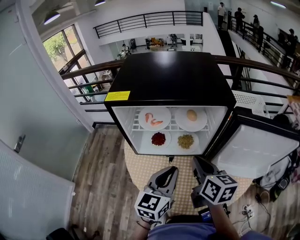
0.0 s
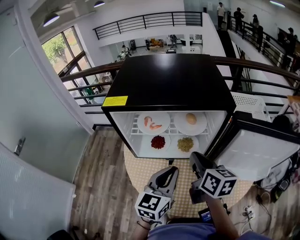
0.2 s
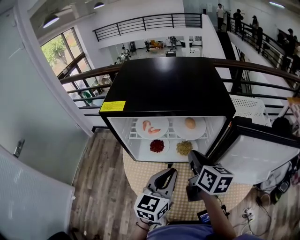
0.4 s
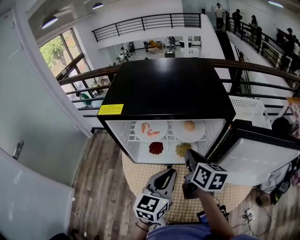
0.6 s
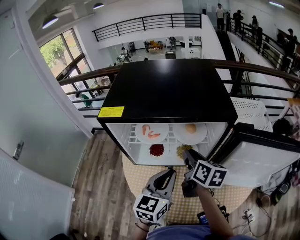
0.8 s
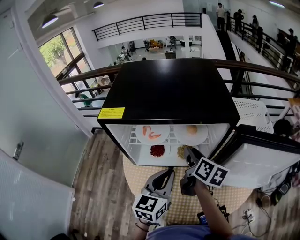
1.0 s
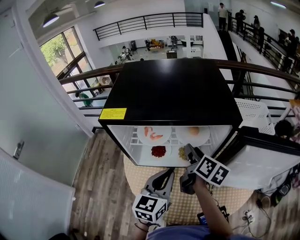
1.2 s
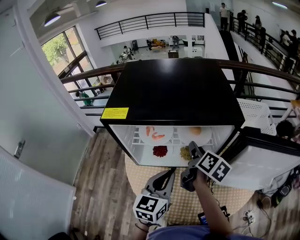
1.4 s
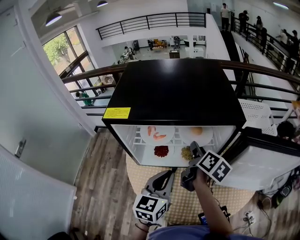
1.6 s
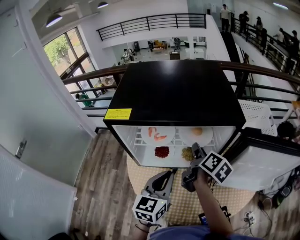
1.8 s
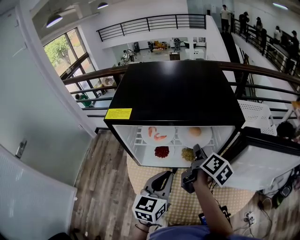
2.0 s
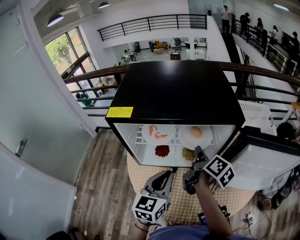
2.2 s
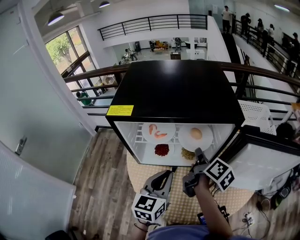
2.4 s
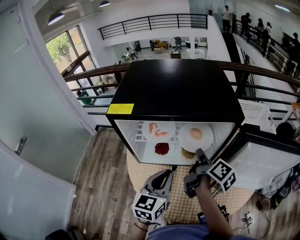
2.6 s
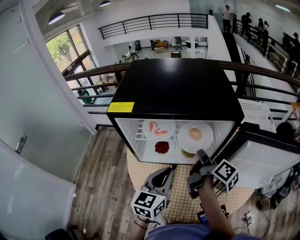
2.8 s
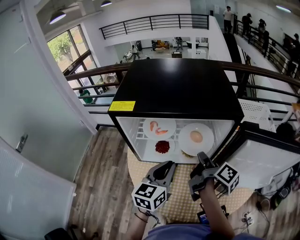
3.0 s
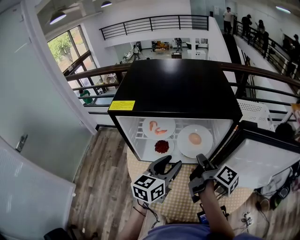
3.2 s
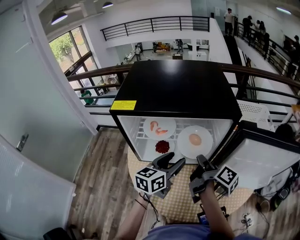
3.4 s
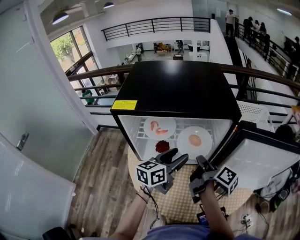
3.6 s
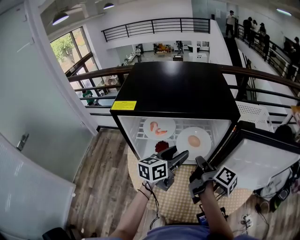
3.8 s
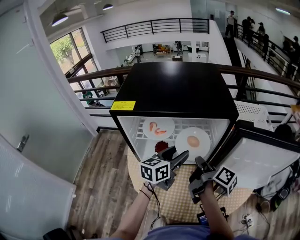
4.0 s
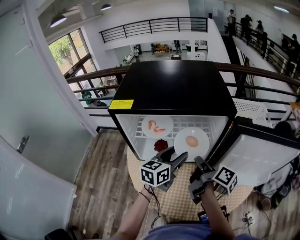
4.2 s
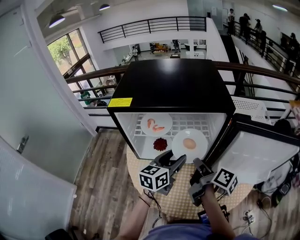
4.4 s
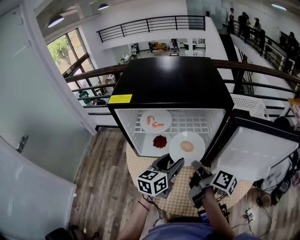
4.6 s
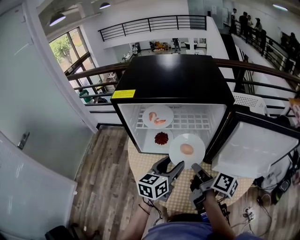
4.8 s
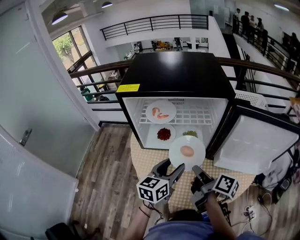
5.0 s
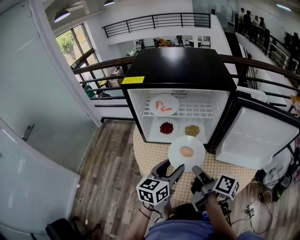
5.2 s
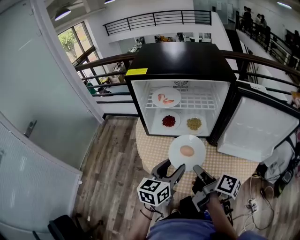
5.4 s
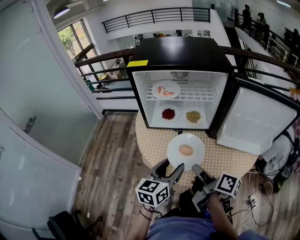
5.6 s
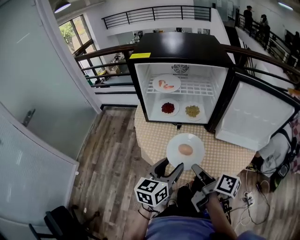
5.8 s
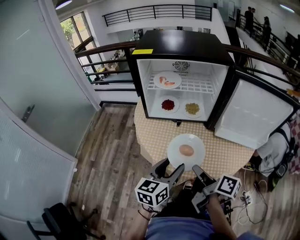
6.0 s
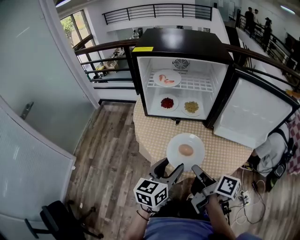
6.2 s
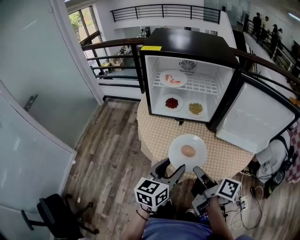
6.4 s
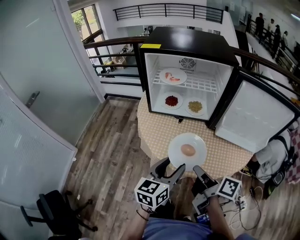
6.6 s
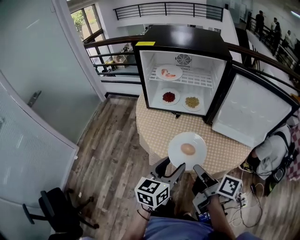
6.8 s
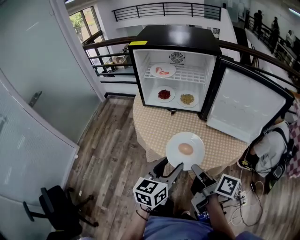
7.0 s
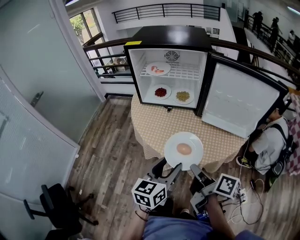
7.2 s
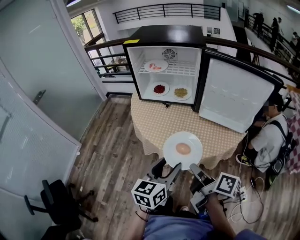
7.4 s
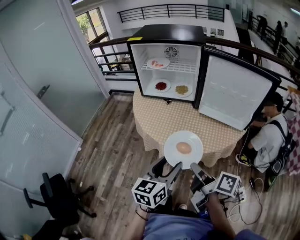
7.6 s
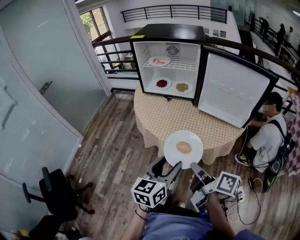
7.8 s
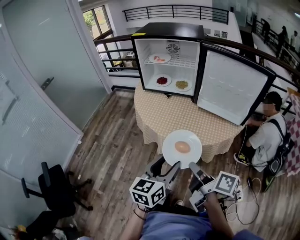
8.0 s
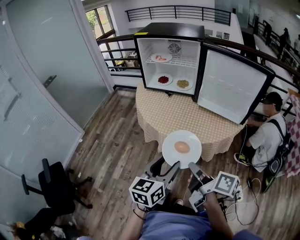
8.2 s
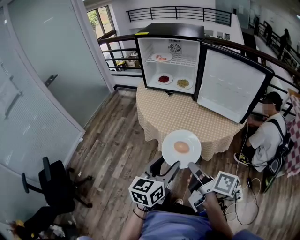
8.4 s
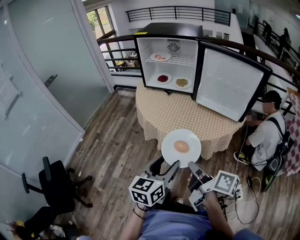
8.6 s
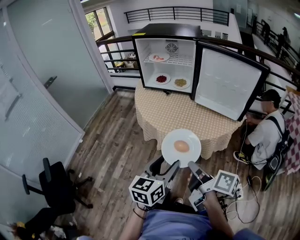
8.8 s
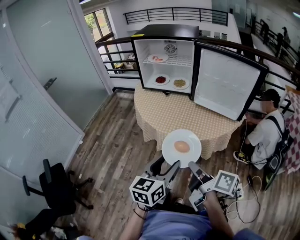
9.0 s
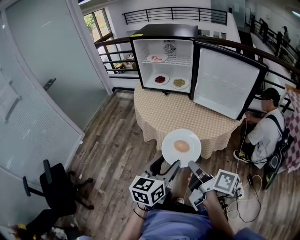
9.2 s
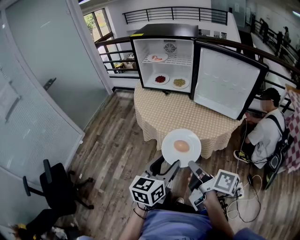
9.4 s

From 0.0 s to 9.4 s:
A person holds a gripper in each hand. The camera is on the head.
From 0.0 s to 1.6 s: The right gripper moves forward, roughly 15 cm, swivels roughly 30 degrees, and opens, while the left gripper heads forward, covering approximately 5 cm.
From 1.6 s to 3.2 s: The left gripper opens its fingers; the right gripper goes some 5 cm backward, changes its angle by some 30 degrees, and closes up.
From 3.2 s to 4.8 s: The right gripper is displaced backward by some 10 cm, while the left gripper ends up some 5 cm from where it was.
From 4.8 s to 6.2 s: Both grippers move backward, approximately 20 cm.
From 6.2 s to 7.8 s: The two grippers go some 25 cm backward and to the right.
From 7.8 s to 9.4 s: Both grippers travel together backward, roughly 5 cm.

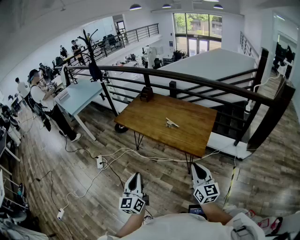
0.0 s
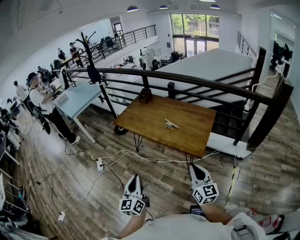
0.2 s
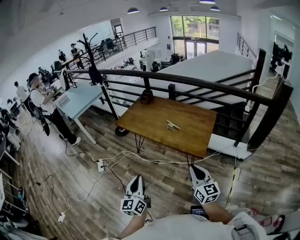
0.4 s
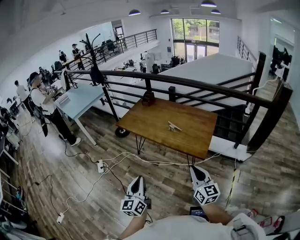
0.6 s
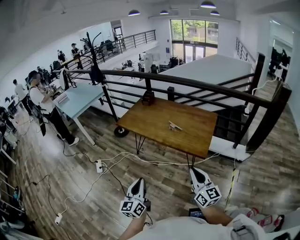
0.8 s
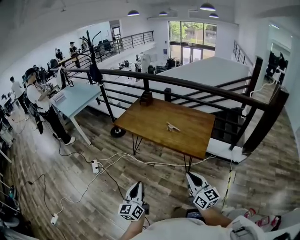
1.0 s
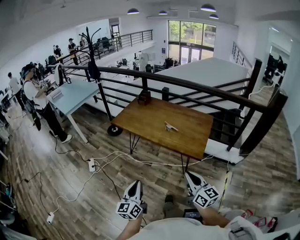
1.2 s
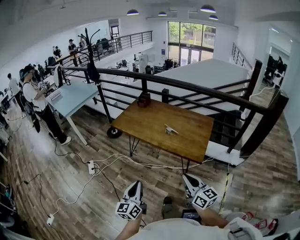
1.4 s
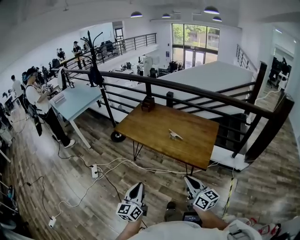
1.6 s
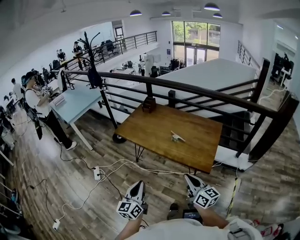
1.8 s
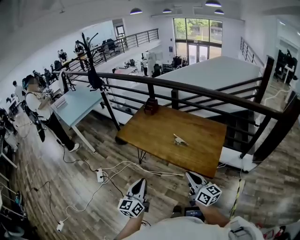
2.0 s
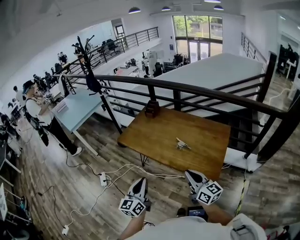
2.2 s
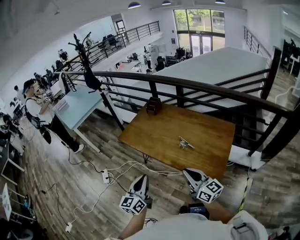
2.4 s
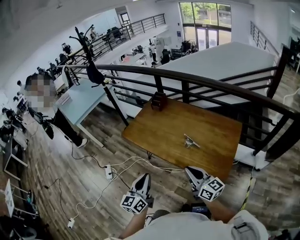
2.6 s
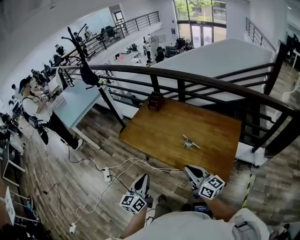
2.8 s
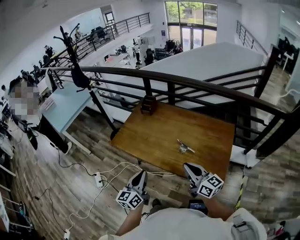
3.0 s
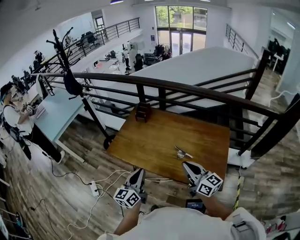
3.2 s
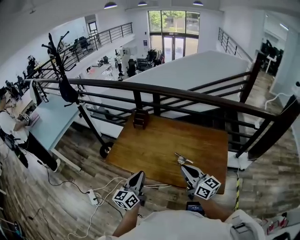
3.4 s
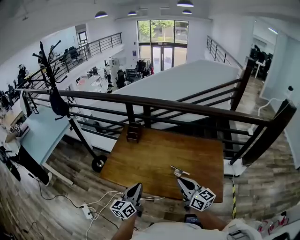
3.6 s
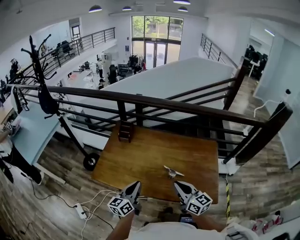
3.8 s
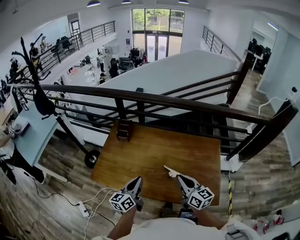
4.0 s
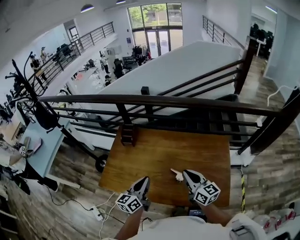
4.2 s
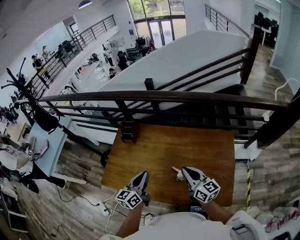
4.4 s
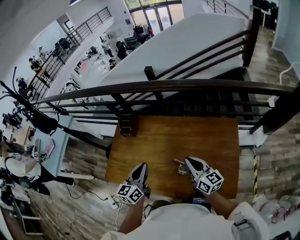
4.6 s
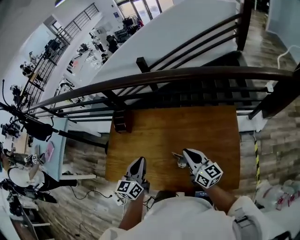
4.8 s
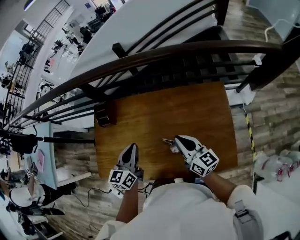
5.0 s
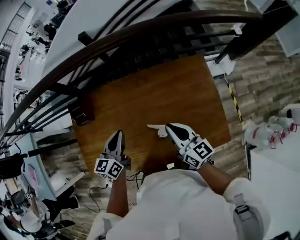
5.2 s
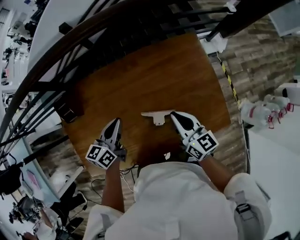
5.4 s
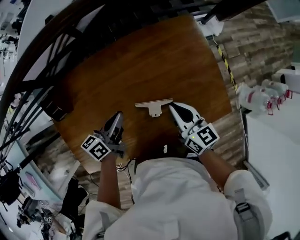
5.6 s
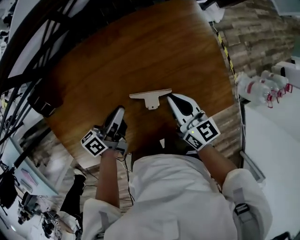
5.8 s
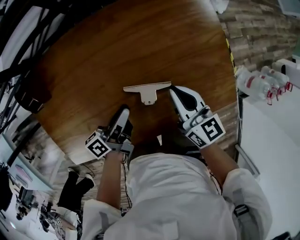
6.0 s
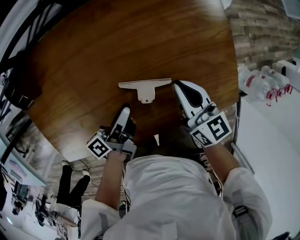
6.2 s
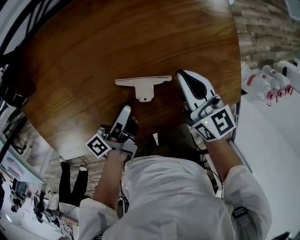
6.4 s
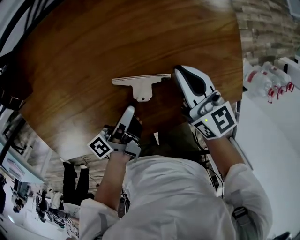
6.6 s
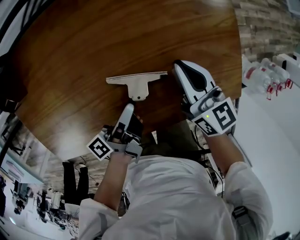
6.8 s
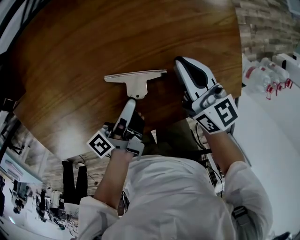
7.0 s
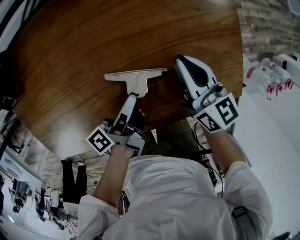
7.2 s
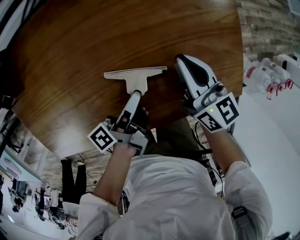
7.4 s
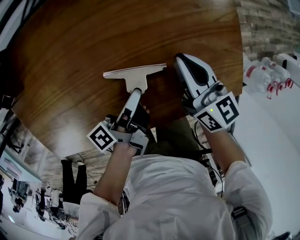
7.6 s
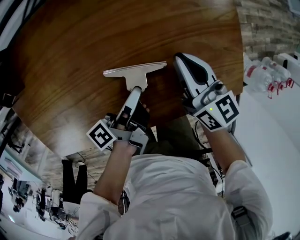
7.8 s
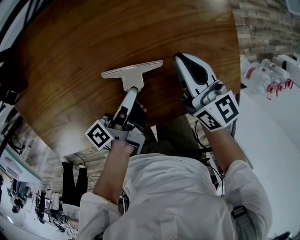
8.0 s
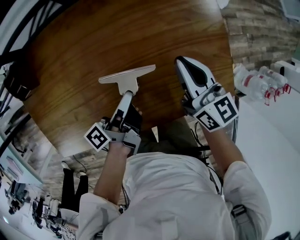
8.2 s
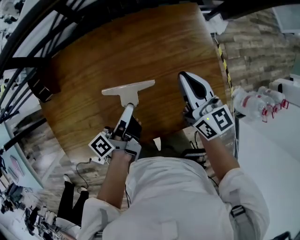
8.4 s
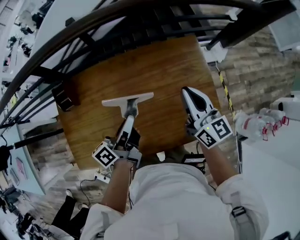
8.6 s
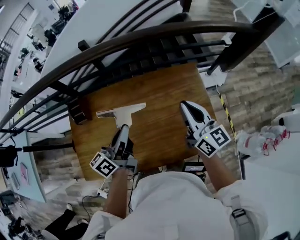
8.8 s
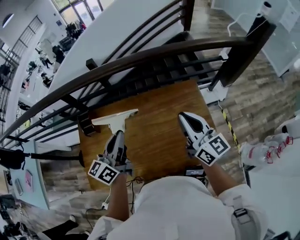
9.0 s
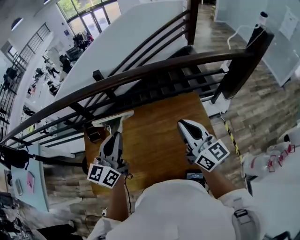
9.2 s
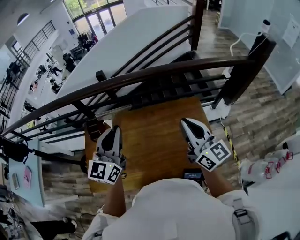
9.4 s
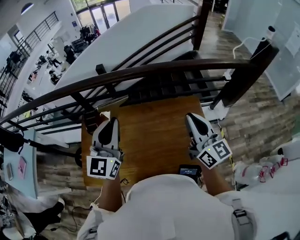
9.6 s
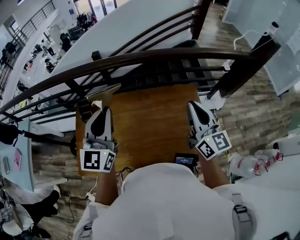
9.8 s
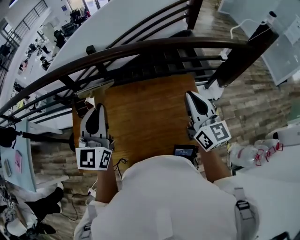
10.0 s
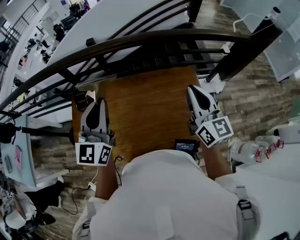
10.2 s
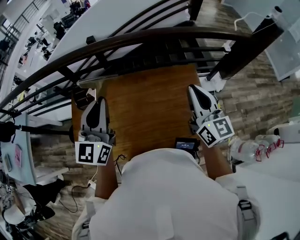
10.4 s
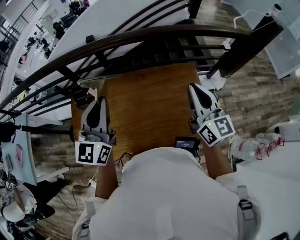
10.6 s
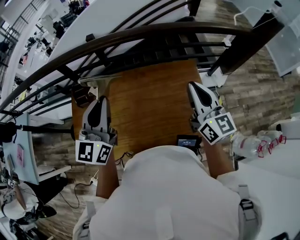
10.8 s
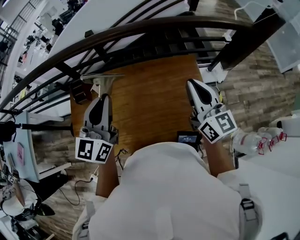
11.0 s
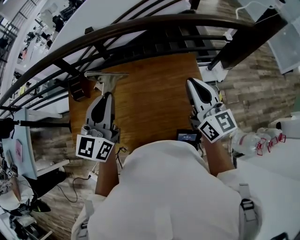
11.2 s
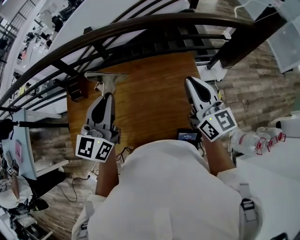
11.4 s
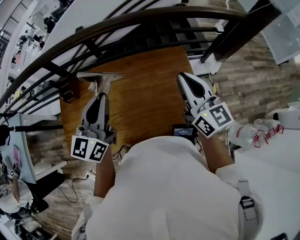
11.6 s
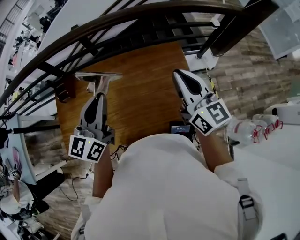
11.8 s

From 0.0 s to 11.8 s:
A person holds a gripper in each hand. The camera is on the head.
From 0.0 s to 1.4 s: The right gripper heads to the left, covering some 10 cm, while the left gripper moves to the left and downward, about 10 cm.
From 1.4 s to 3.0 s: Both grippers travel together forward, some 40 cm.
From 3.0 s to 4.4 s: Both grippers move forward, roughly 30 cm.
From 4.4 s to 6.0 s: The two grippers go approximately 25 cm downward. The left gripper rotates about 60 degrees, and opens. Meanwhile the right gripper swivels about 30 degrees.
From 6.0 s to 7.4 s: The right gripper goes approximately 5 cm downward. The left gripper heads to the right and downward, covering approximately 10 cm, and swivels about 30 degrees.
From 7.4 s to 8.8 s: The grippers both shift upward by some 35 cm. The left gripper rotates around the line of its fingers by some 50 degrees, clockwise from behind, and closes up. The right gripper rotates some 20 degrees.
From 8.8 s to 10.4 s: The left gripper is displaced upward by about 15 cm, and rotates around the line of its fingers by about 50 degrees, clockwise from behind, while the right gripper goes some 10 cm upward.
From 10.4 s to 11.8 s: The left gripper travels to the right and downward by approximately 15 cm. The right gripper goes about 5 cm to the right.

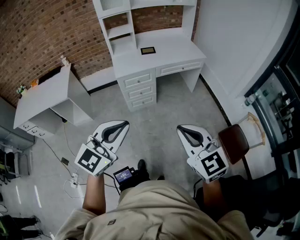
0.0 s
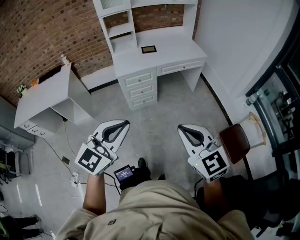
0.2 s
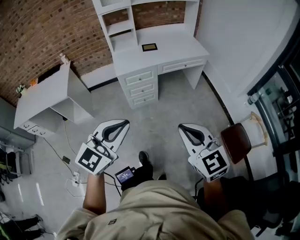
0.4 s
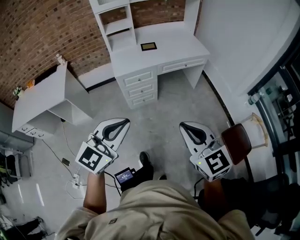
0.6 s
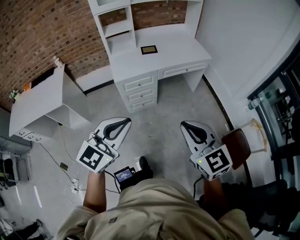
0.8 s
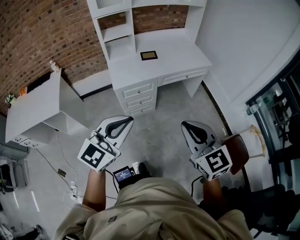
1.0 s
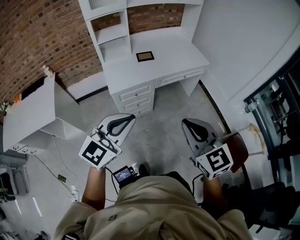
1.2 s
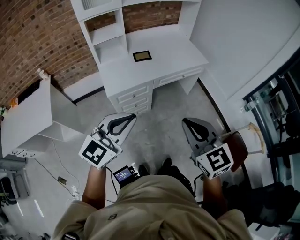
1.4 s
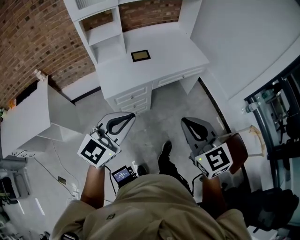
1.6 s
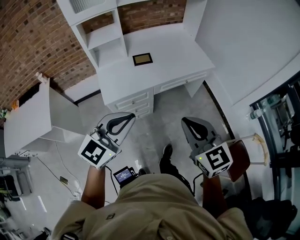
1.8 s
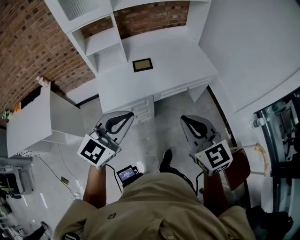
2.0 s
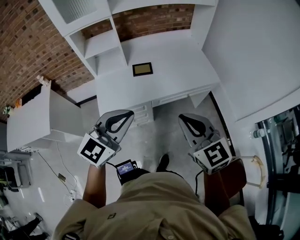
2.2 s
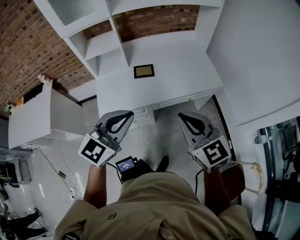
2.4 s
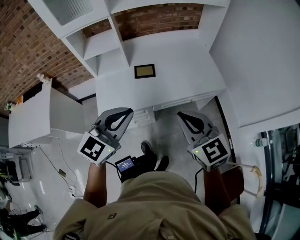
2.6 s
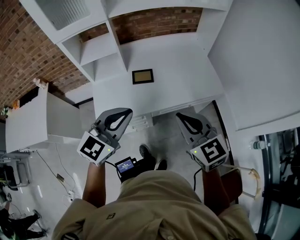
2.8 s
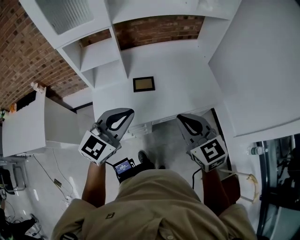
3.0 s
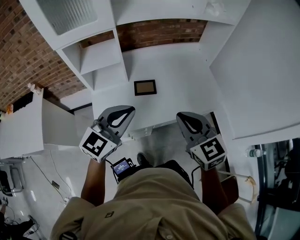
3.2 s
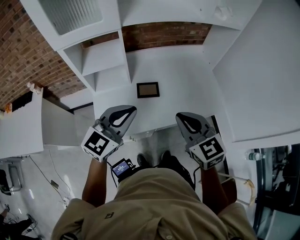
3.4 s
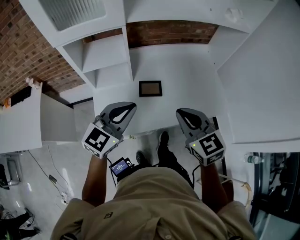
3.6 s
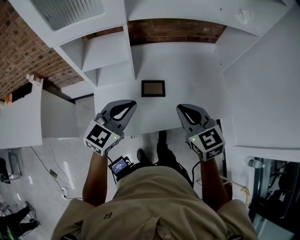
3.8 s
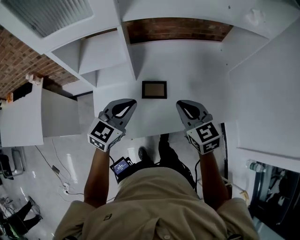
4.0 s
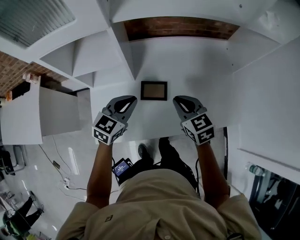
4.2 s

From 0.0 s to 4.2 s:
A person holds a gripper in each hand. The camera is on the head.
From 0.0 s to 1.4 s: The two grippers go roughly 30 cm forward.
From 1.4 s to 2.8 s: The grippers both shift forward by approximately 40 cm.
From 2.8 s to 4.2 s: The two grippers go about 35 cm forward and downward. The left gripper rotates roughly 20 degrees.
